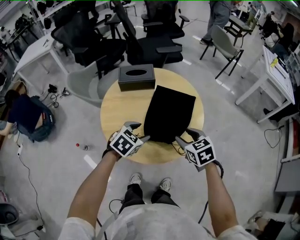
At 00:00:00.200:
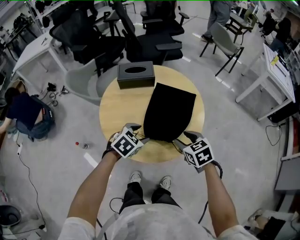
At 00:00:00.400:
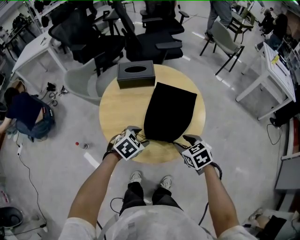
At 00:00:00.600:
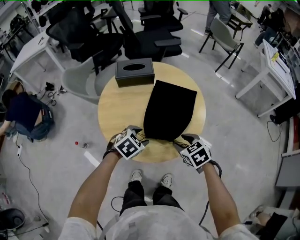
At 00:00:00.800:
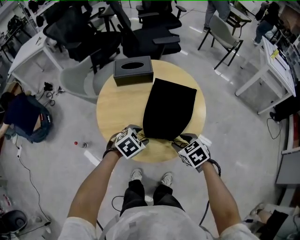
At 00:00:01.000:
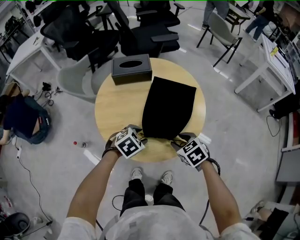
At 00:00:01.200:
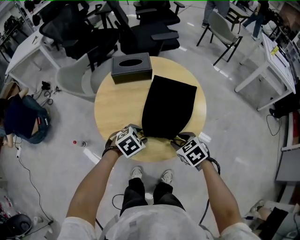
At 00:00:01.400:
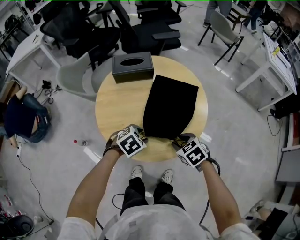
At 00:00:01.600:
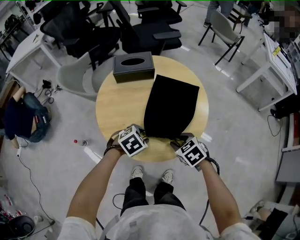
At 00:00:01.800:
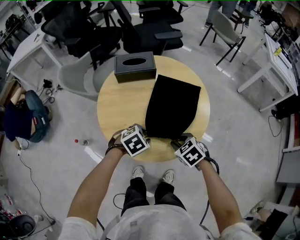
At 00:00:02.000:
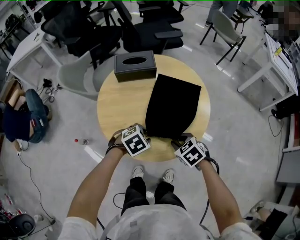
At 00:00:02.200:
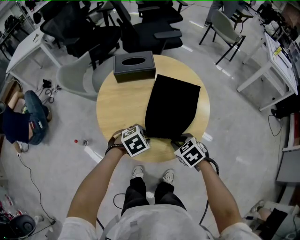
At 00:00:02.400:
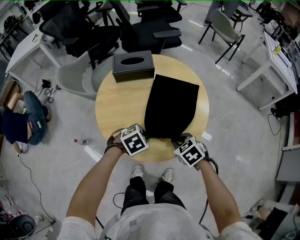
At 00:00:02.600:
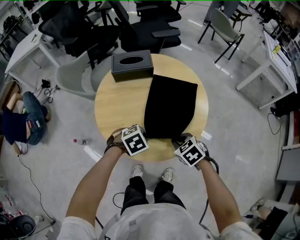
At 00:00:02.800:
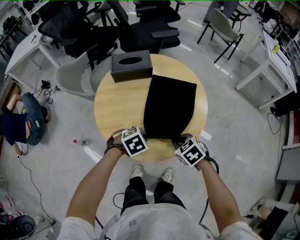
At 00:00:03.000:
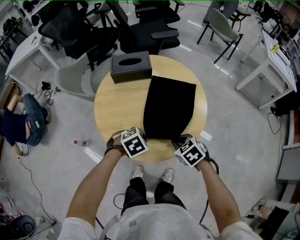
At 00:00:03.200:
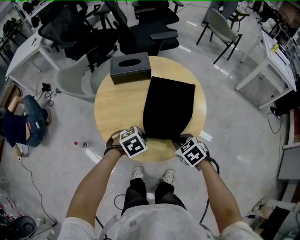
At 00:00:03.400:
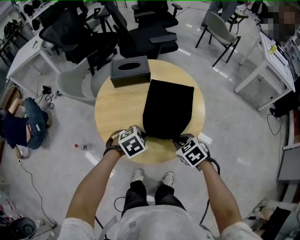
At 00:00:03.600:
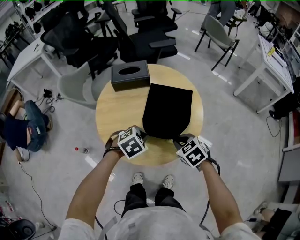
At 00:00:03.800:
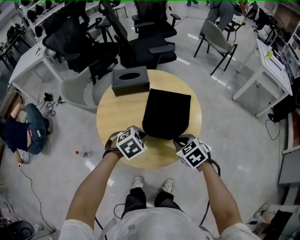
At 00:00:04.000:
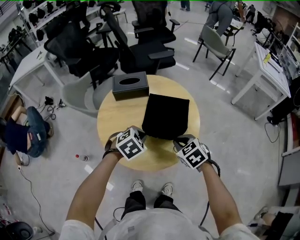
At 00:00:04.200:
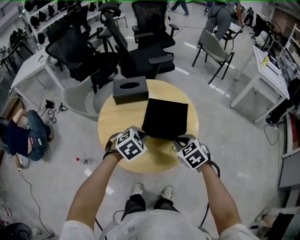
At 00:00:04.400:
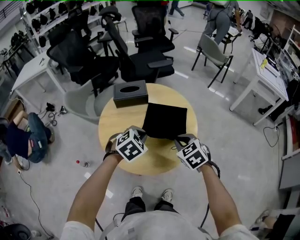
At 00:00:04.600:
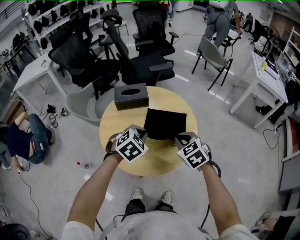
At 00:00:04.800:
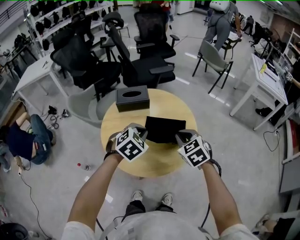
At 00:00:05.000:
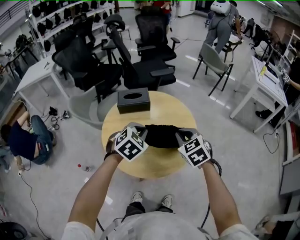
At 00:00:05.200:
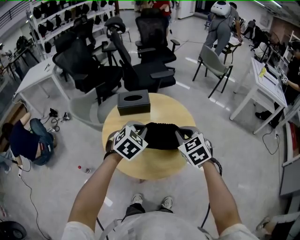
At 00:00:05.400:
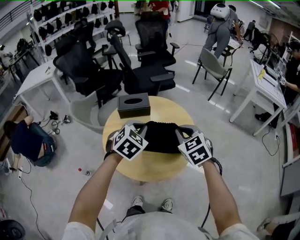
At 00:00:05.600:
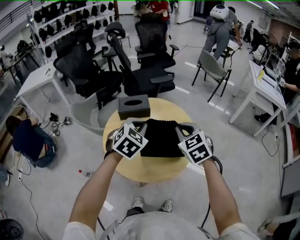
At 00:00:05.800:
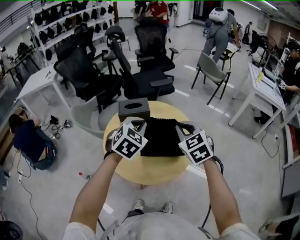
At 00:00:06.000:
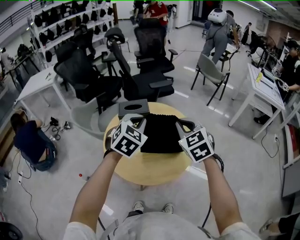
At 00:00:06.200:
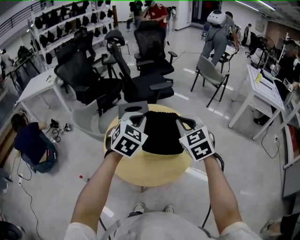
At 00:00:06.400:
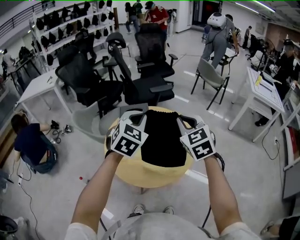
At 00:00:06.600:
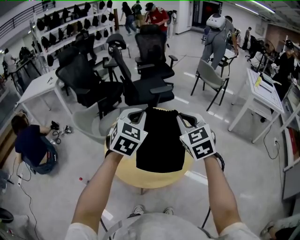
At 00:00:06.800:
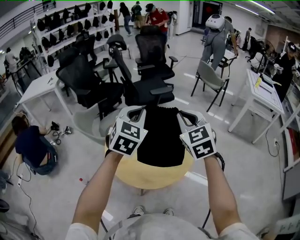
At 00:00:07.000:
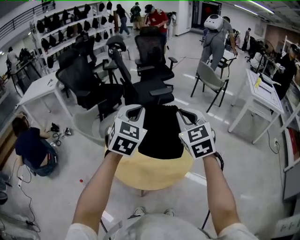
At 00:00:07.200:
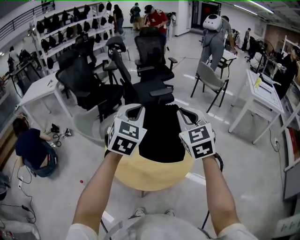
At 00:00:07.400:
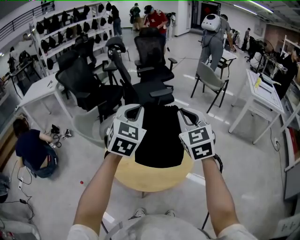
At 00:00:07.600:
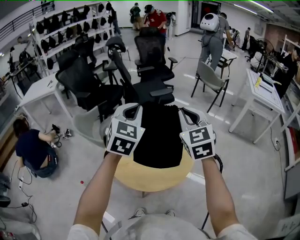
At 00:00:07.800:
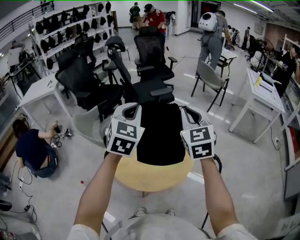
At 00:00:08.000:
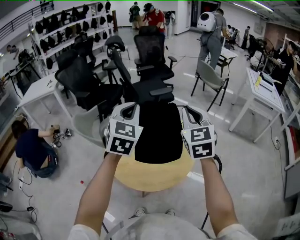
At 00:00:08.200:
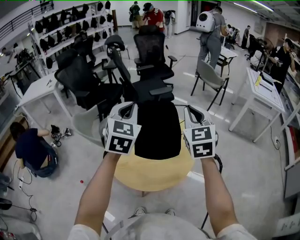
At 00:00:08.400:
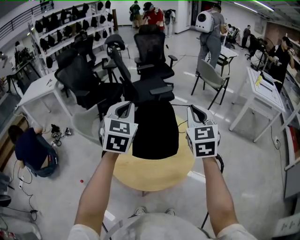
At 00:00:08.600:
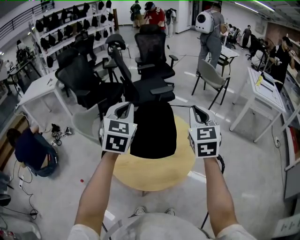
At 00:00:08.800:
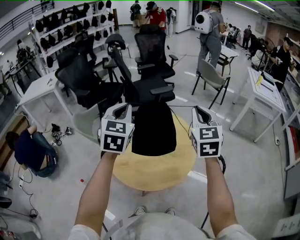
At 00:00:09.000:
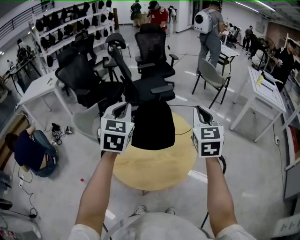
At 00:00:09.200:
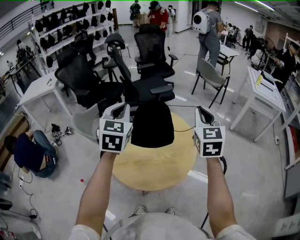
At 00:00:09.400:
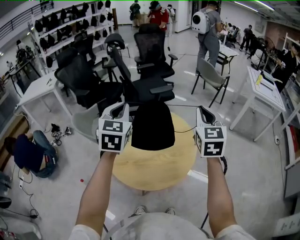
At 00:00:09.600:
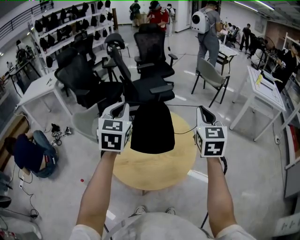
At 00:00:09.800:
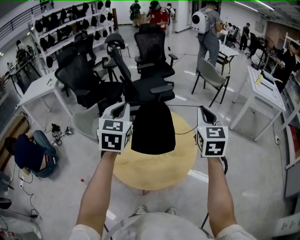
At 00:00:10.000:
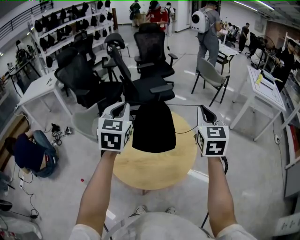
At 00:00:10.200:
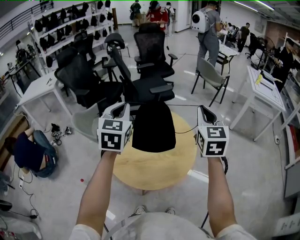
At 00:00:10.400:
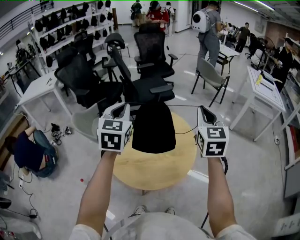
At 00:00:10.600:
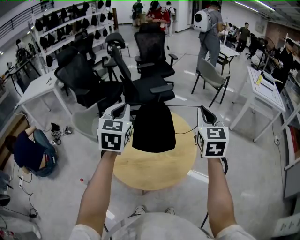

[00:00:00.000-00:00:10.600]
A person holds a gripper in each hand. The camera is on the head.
00:00:00.000 to 00:00:01.600: The two grippers go roughly 10 cm downward. The left gripper changes its angle by approximately 20 degrees.
00:00:01.600 to 00:00:03.000: The left gripper closes. The right gripper closes up.
00:00:03.000 to 00:00:04.600: The grippers both shift upward and forward by approximately 15 cm. The left gripper turns by some 30 degrees. The right gripper swivels some 20 degrees.
00:00:04.600 to 00:00:06.000: Both grippers move upward, about 15 cm. The left gripper rotates some 20 degrees.
00:00:06.000 to 00:00:07.600: Both grippers travel together upward, roughly 10 cm.
00:00:07.600 to 00:00:09.000: The right gripper moves to the right, approximately 5 cm.
00:00:09.000 to 00:00:10.600: The grippers move only a little.

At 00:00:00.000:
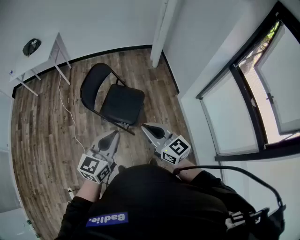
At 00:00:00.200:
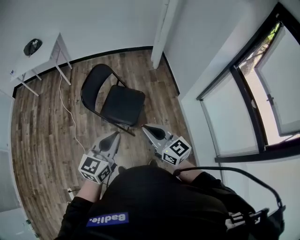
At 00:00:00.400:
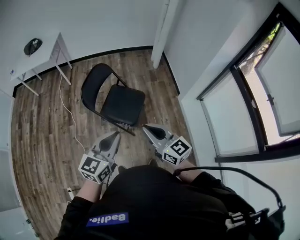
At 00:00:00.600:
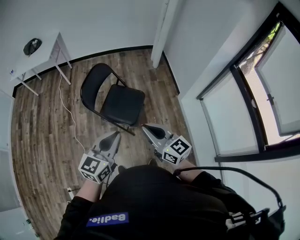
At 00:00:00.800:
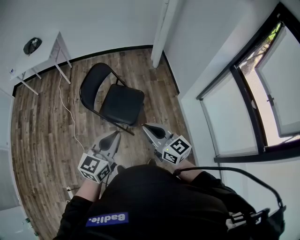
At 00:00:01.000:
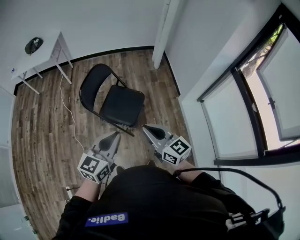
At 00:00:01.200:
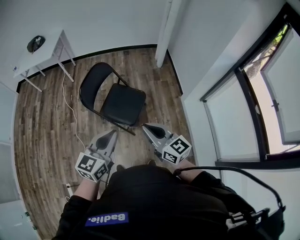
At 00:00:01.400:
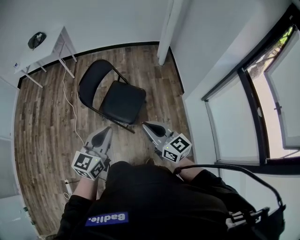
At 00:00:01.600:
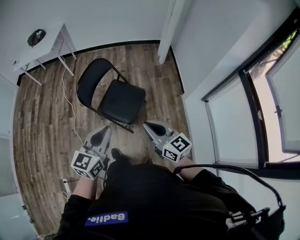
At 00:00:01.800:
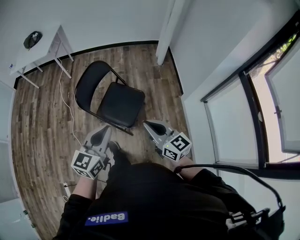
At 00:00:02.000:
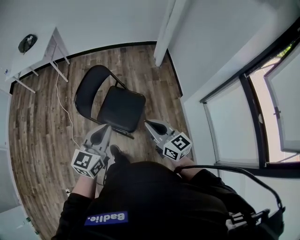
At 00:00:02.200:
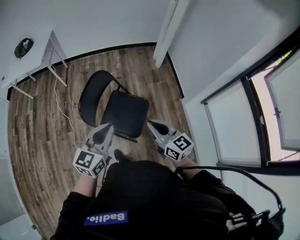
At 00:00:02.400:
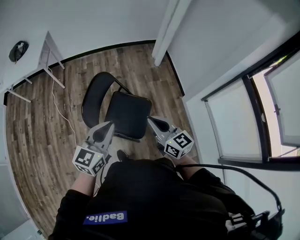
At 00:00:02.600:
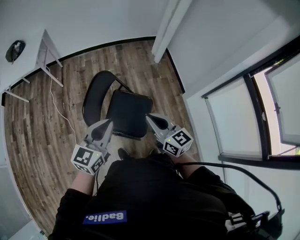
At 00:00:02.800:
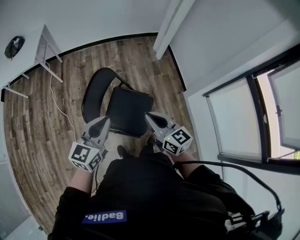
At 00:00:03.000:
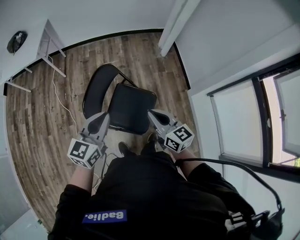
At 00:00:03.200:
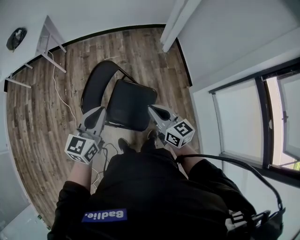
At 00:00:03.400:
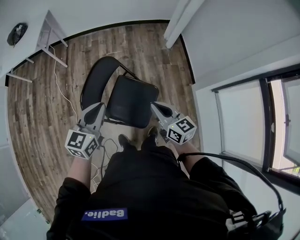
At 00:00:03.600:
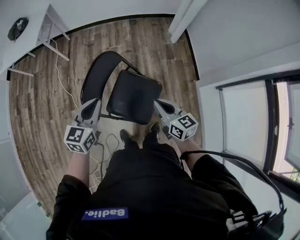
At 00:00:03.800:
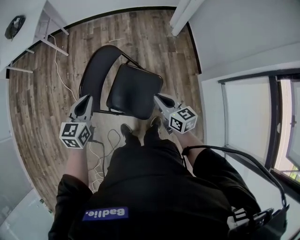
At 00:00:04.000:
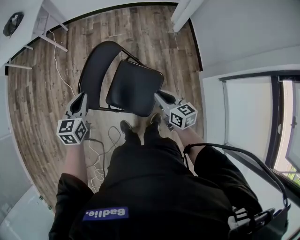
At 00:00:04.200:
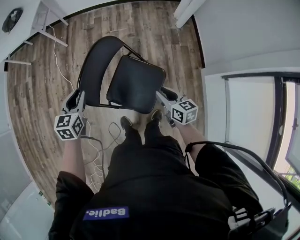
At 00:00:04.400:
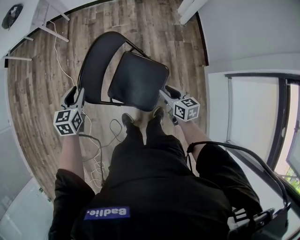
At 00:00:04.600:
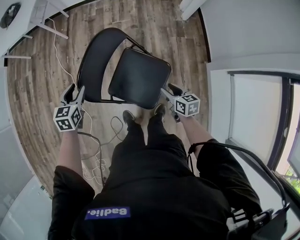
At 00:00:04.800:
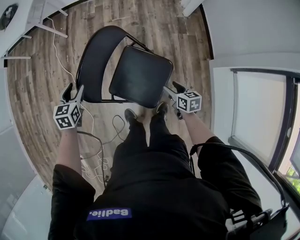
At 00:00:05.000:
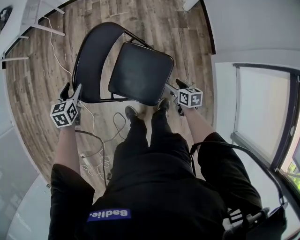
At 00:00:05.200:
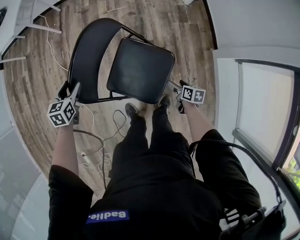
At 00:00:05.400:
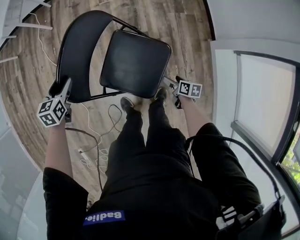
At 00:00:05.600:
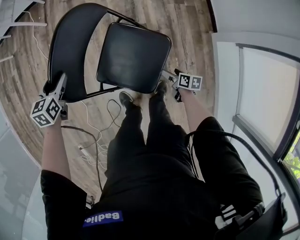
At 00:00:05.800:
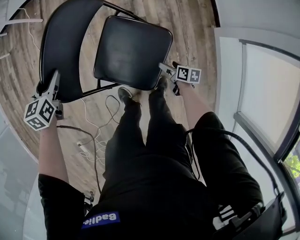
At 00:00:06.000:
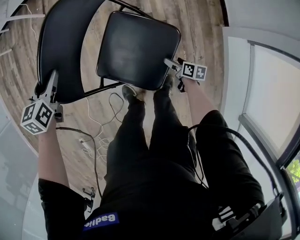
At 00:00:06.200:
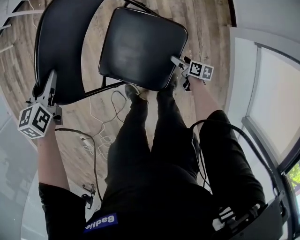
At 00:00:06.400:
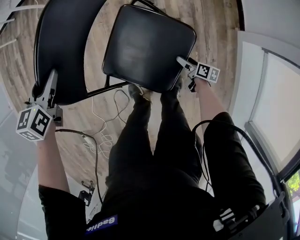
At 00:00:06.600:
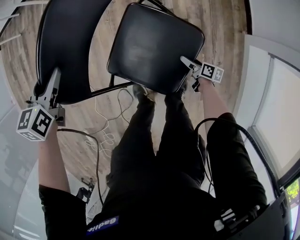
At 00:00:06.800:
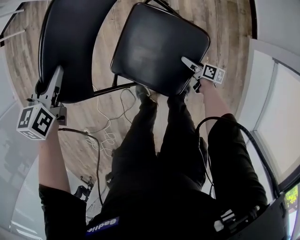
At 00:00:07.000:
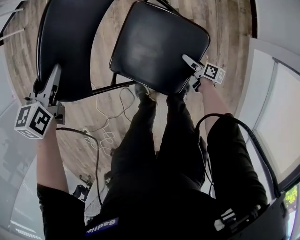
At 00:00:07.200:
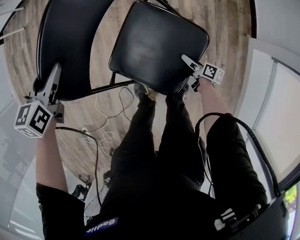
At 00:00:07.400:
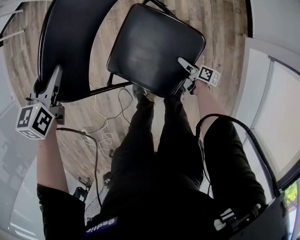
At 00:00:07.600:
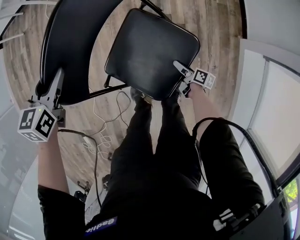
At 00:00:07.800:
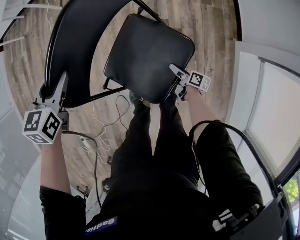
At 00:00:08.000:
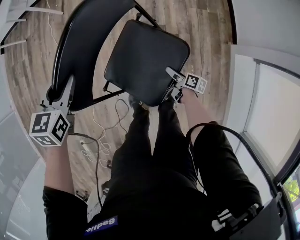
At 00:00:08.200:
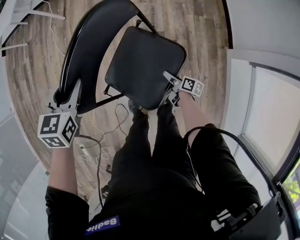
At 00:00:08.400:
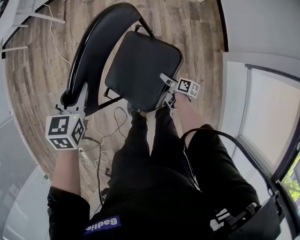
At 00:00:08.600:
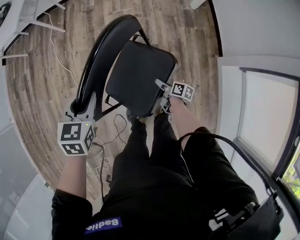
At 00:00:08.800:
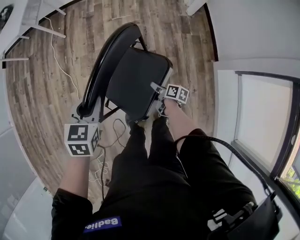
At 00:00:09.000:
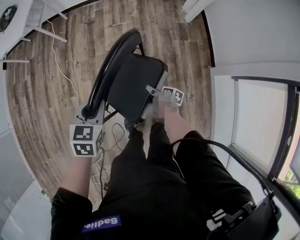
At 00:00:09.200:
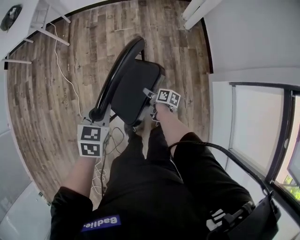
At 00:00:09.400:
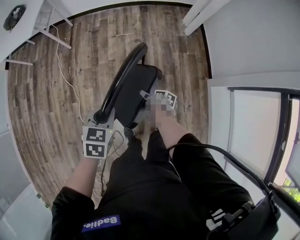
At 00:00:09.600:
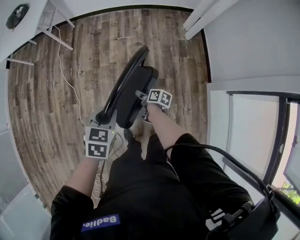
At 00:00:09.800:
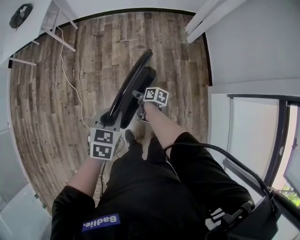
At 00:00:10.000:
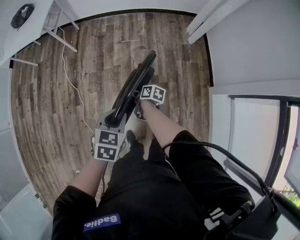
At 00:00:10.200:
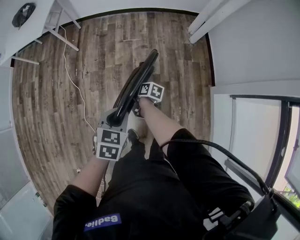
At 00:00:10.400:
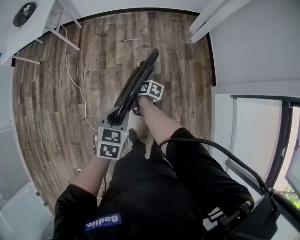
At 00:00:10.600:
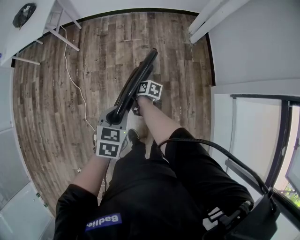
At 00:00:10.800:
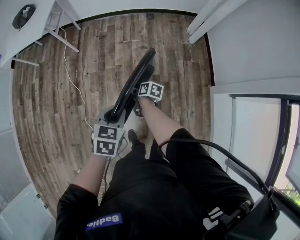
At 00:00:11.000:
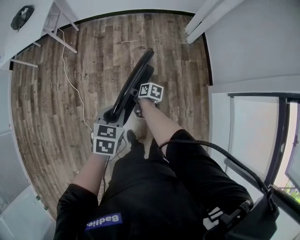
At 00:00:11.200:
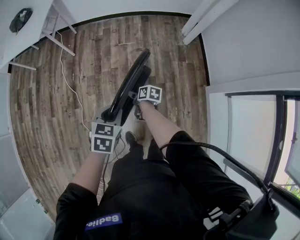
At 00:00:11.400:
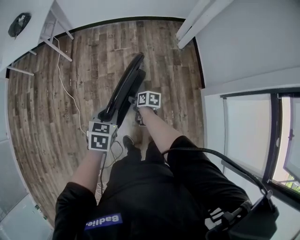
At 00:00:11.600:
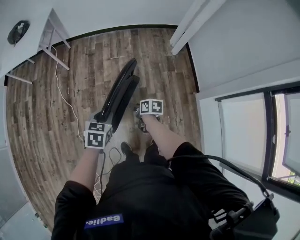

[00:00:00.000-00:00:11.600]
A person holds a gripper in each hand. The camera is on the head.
00:00:00.000 to 00:00:01.400: The right gripper heads to the right, covering some 10 cm, while the left gripper changes place by about 5 cm.
00:00:01.400 to 00:00:02.800: The grippers both shift forward and to the left by roughly 30 cm.
00:00:02.800 to 00:00:04.400: The right gripper is displaced downward by some 25 cm, and changes its angle by about 30 degrees. The left gripper shifts some 25 cm downward, forward and to the left, swivels some 40 degrees, and opens.
00:00:04.400 to 00:00:05.800: The left gripper is displaced downward and forward by about 20 cm, and opens up. The right gripper travels downward by approximately 35 cm, turns by some 30 degrees, and opens.
00:00:05.800 to 00:00:07.200: The right gripper moves downward, approximately 10 cm.
00:00:07.200 to 00:00:08.800: The right gripper shifts about 20 cm upward, and closes, while the left gripper travels upward, backward and to the right by roughly 20 cm, and closes its fingers.
00:00:08.800 to 00:00:10.200: The left gripper shifts some 5 cm upward, while the right gripper moves to the left, upward and forward, roughly 25 cm.
00:00:10.200 to 00:00:11.600: The right gripper is displaced backward and upward by approximately 10 cm.

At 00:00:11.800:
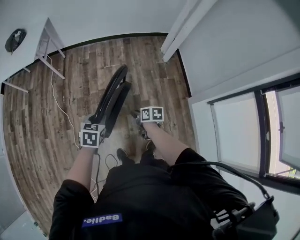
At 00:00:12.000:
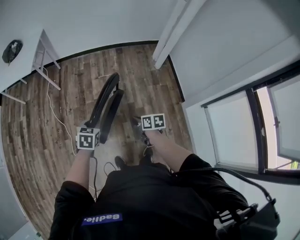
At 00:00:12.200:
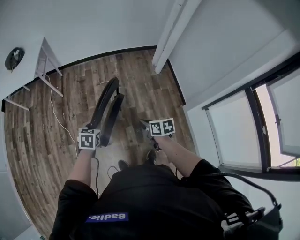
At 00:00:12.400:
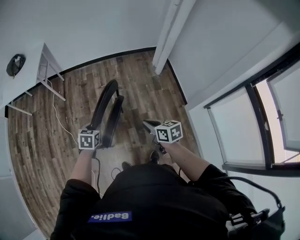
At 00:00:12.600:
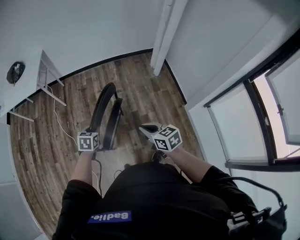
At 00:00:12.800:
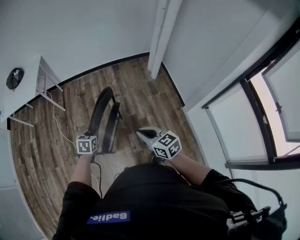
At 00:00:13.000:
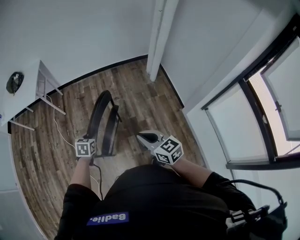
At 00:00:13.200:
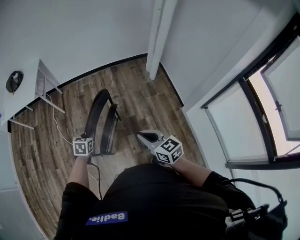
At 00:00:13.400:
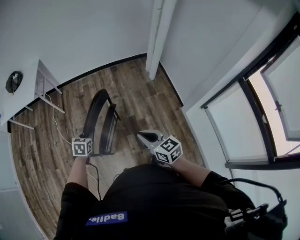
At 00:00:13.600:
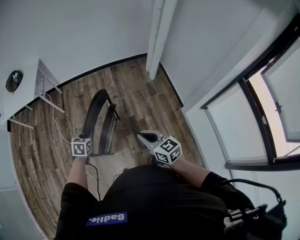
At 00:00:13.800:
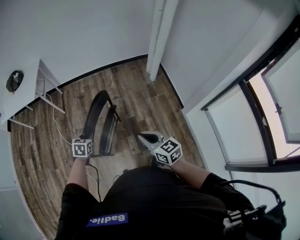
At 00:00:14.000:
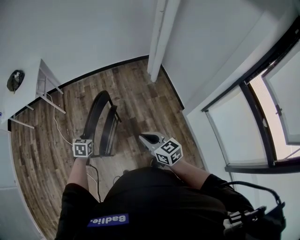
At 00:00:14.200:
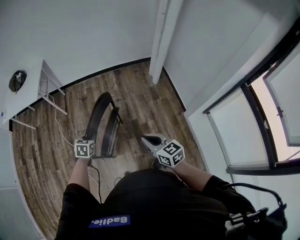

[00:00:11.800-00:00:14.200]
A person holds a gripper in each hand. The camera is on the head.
00:00:11.800 to 00:00:13.000: The right gripper travels upward and backward by about 30 cm, and changes its angle by roughly 50 degrees.
00:00:13.000 to 00:00:14.200: There are only small adjustments of the grippers.
